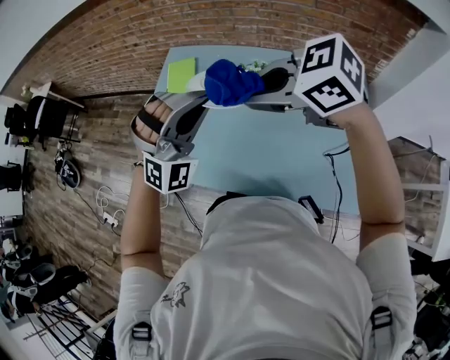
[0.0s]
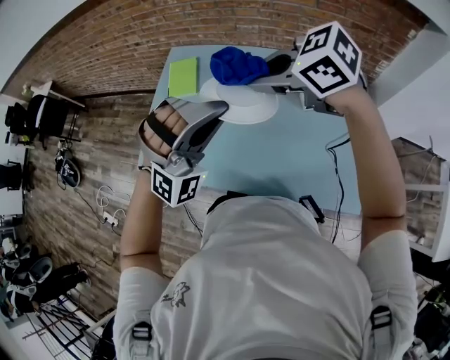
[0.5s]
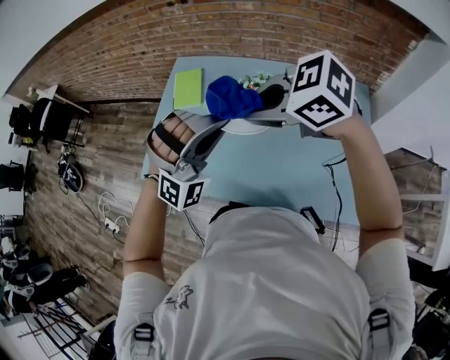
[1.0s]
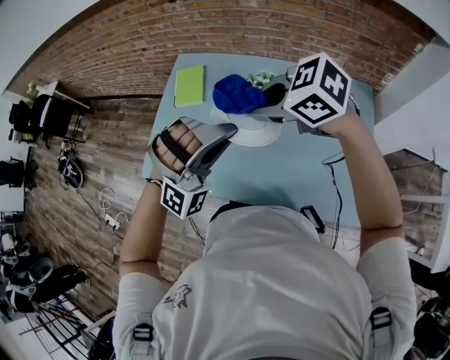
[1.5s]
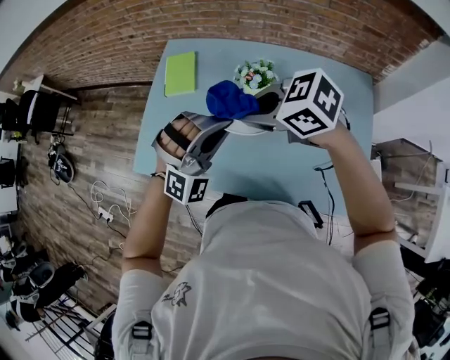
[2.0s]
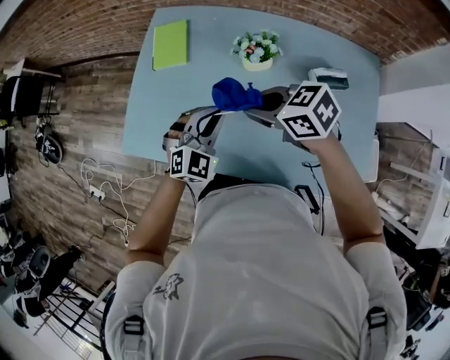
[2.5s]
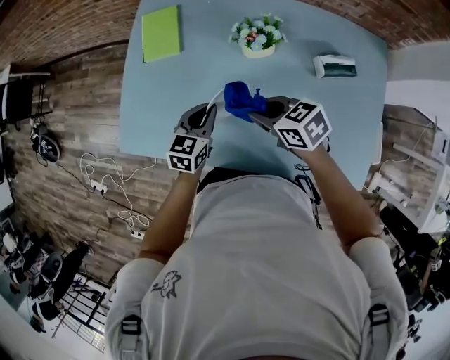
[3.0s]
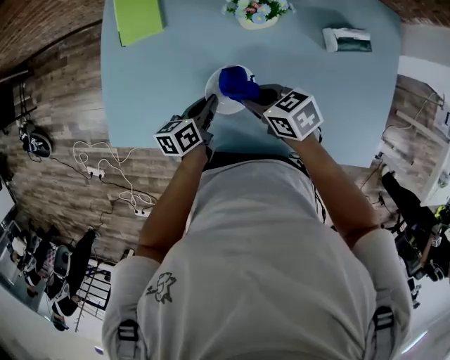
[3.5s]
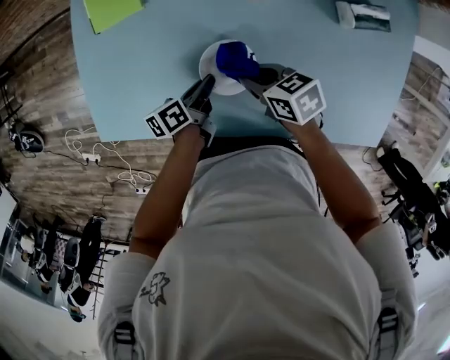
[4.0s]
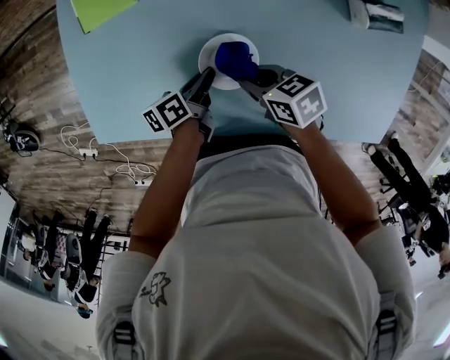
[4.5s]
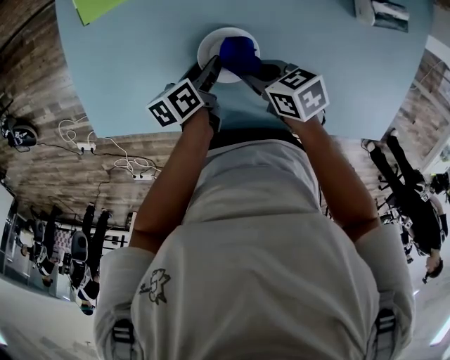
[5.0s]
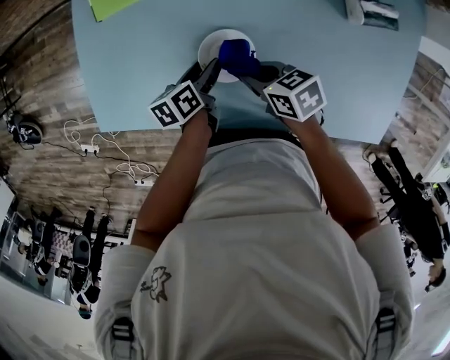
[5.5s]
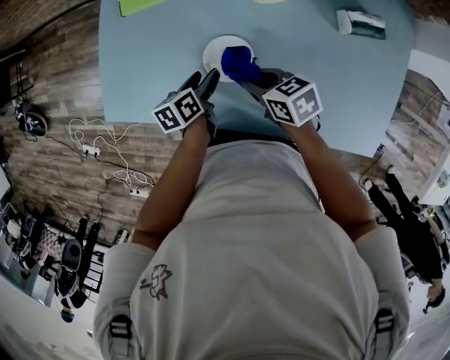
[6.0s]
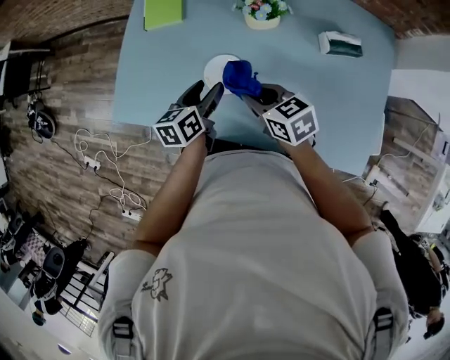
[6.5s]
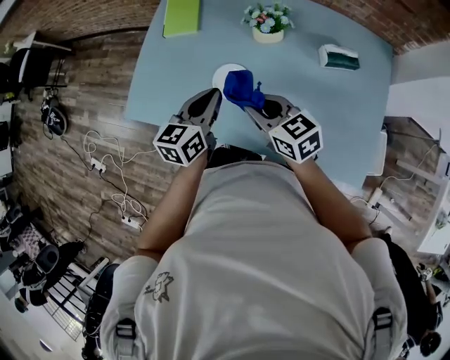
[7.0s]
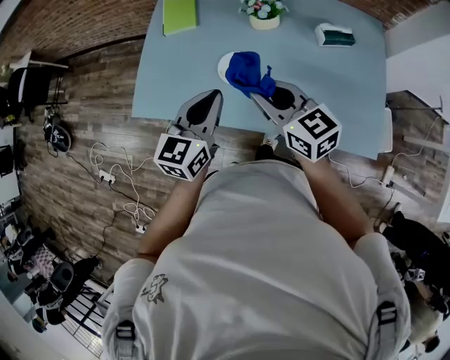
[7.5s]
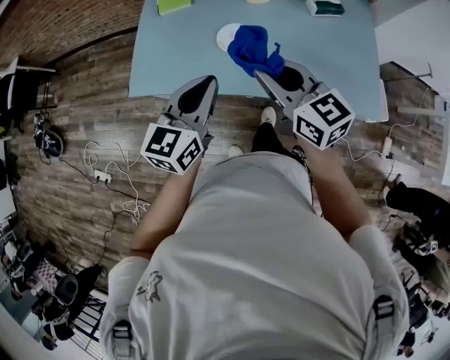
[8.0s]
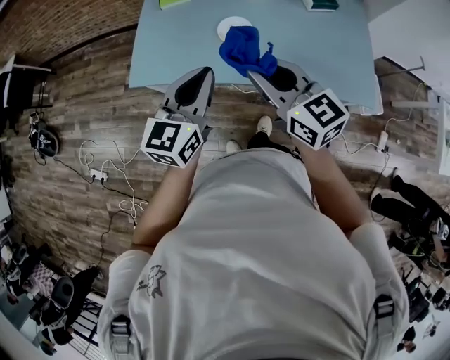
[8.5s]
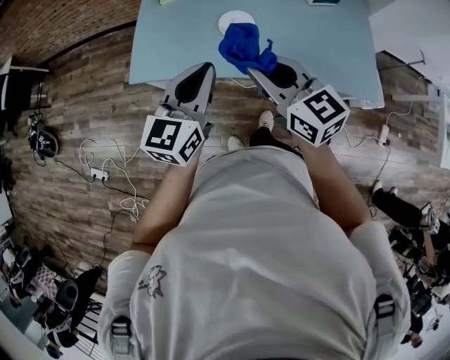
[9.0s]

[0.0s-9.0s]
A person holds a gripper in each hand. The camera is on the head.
0.0s to 2.0s: Both grippers move downward, about 10 cm.
2.0s to 4.5s: Both grippers travel together downward, roughly 40 cm. The left gripper rotates around the line of its fingers by approximately 150 degrees, counterclockwise from behind. The right gripper twists roughly 50 degrees clockwise, seen from behind.
4.5s to 7.0s: Both grippers move upward, approximately 25 cm. The left gripper rotates around the line of its fingers by roughly 50 degrees, clockwise from behind, and opens, then closes again; the right gripper turns by some 40 degrees.
7.0s to 9.0s: Both grippers travel together backward, to the left and upward, some 25 cm. The left gripper swivels some 20 degrees, while the right gripper swivels some 20 degrees.

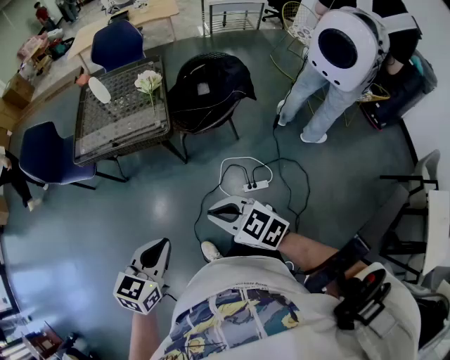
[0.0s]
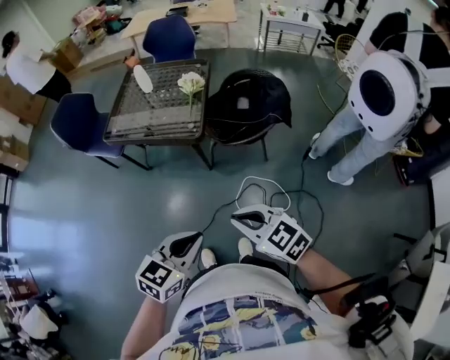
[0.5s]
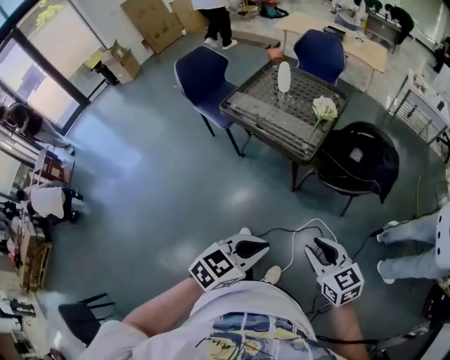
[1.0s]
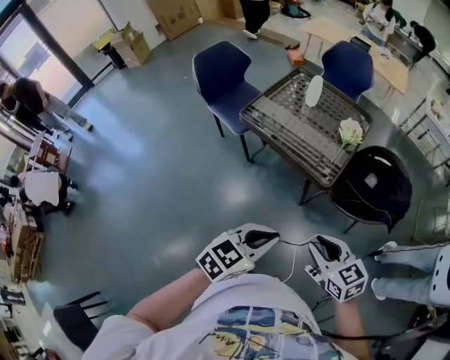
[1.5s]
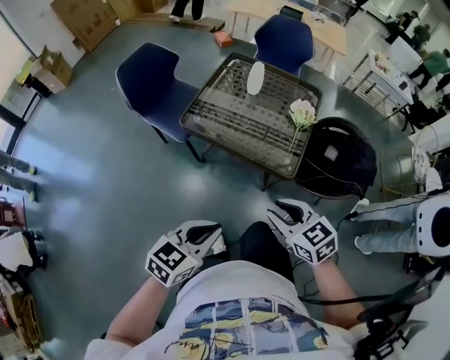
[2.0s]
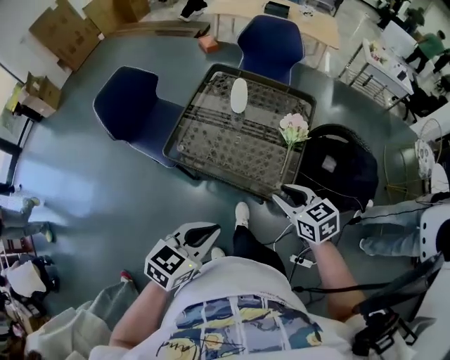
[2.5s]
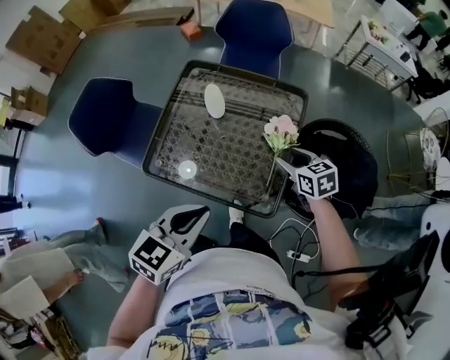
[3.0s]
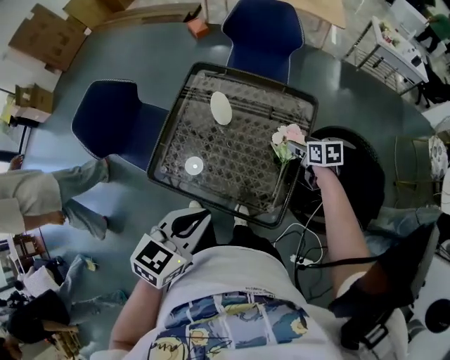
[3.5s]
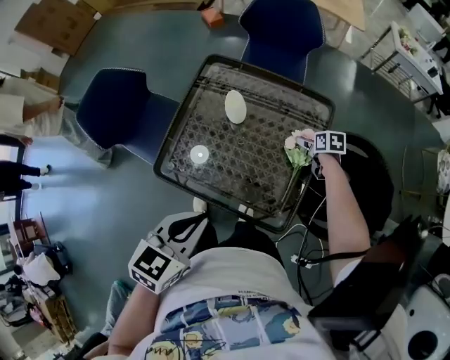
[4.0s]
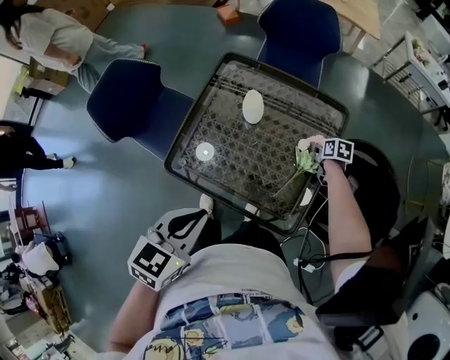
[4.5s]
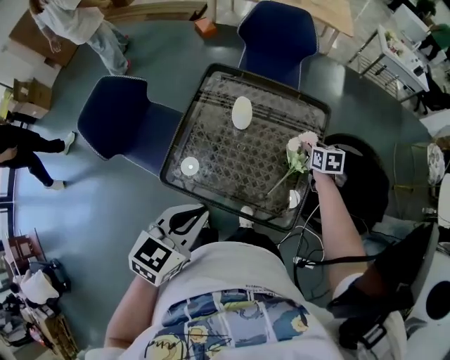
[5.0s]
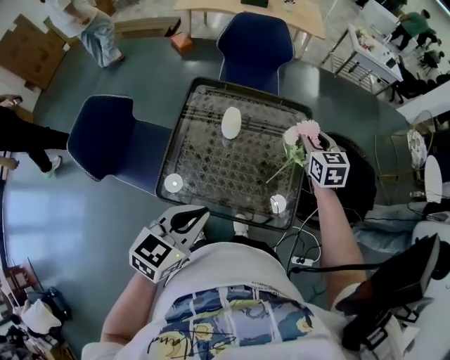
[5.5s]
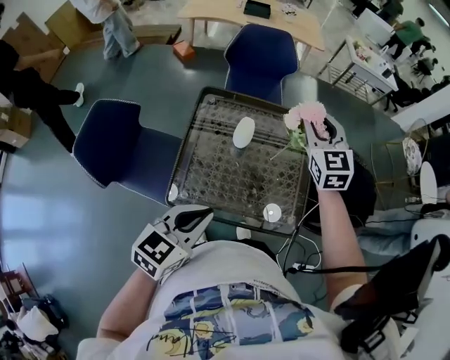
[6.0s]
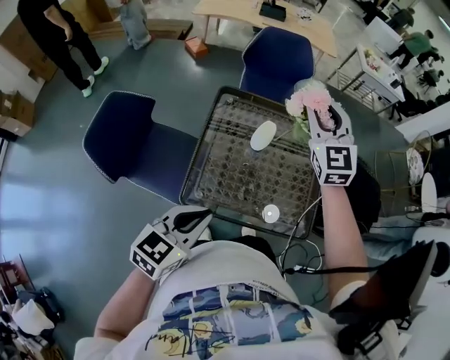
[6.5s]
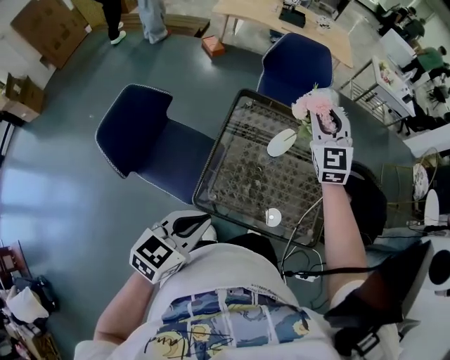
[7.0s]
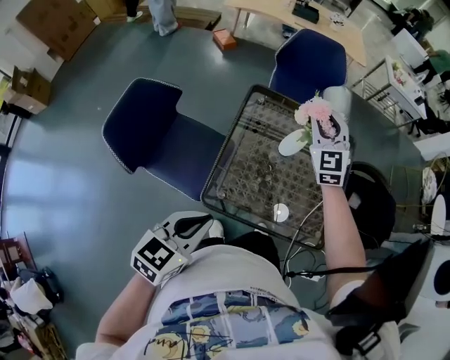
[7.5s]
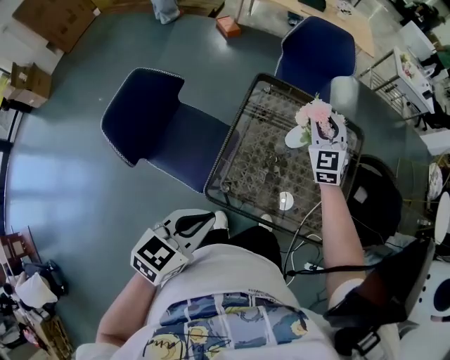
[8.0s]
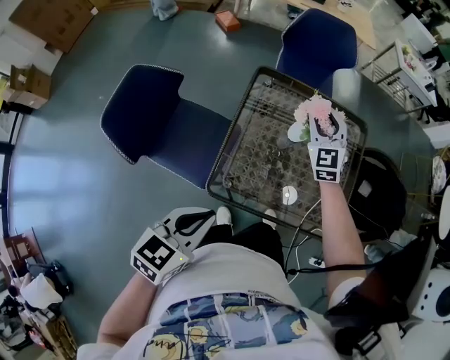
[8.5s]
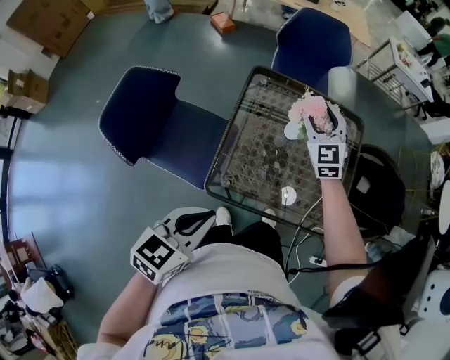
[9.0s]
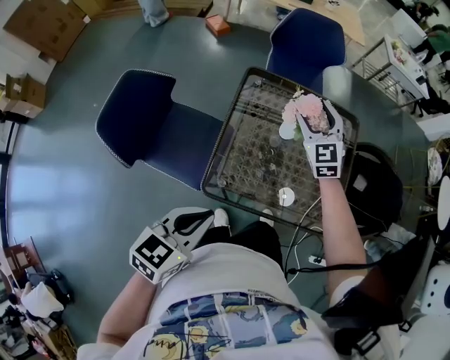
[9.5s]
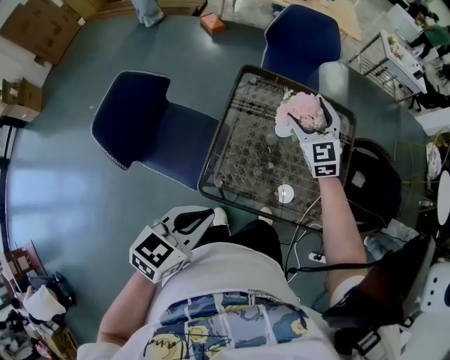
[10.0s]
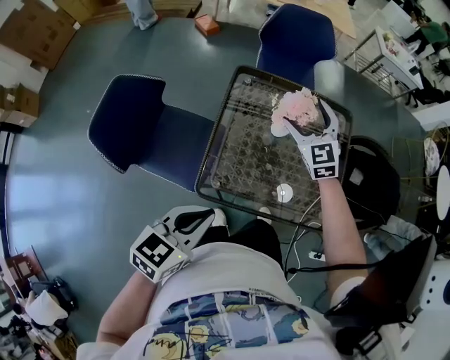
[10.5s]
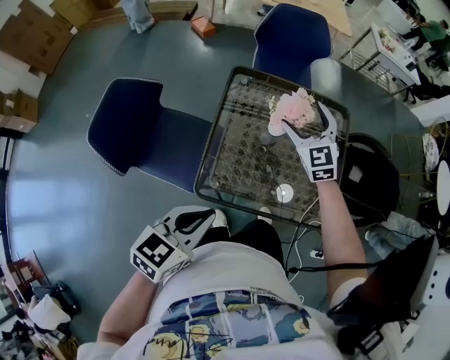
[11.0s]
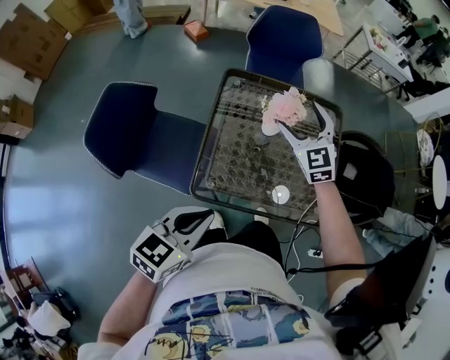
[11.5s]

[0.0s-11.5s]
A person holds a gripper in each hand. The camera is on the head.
0.0s to 2.0s: Both grippers travel together forward and to the left, some 30 cm.
2.0s to 4.0s: The right gripper heads forward and downward, covering some 60 cm, rotates around the line of its fingers by about 40 degrees, clockwise from behind, and opens its fingers; the left gripper travels forward by some 40 cm.
4.0s to 6.0s: The right gripper travels upward by about 40 cm, angles its fingers upward, by roughly 40 degrees, and closes, while the left gripper changes place by roughly 15 cm, and turns by approximately 20 degrees.
6.0s to 7.5s: Both grippers move to the left, about 15 cm.
7.5s to 9.5s: The right gripper is displaced downward by approximately 5 cm, and opens up.
9.5s to 11.5s: The right gripper opens up.

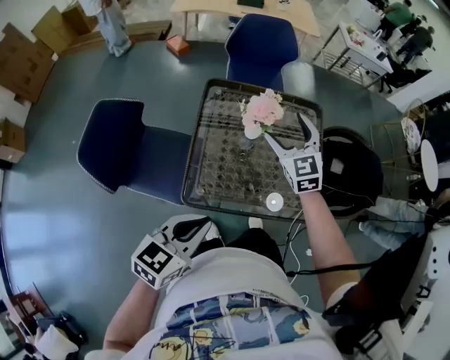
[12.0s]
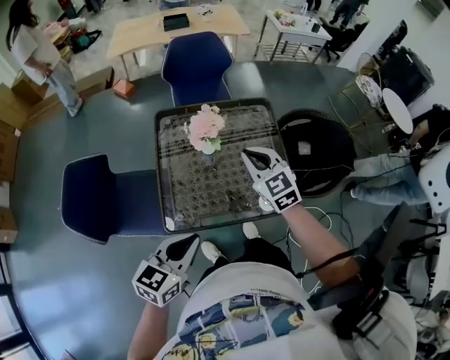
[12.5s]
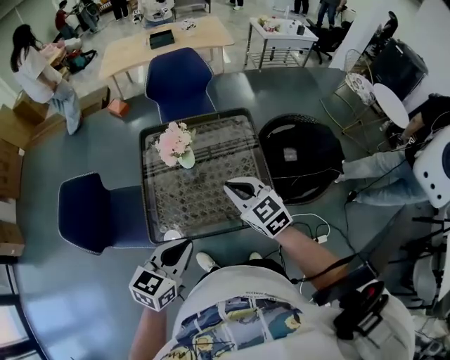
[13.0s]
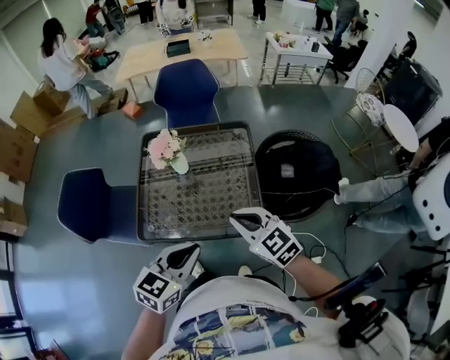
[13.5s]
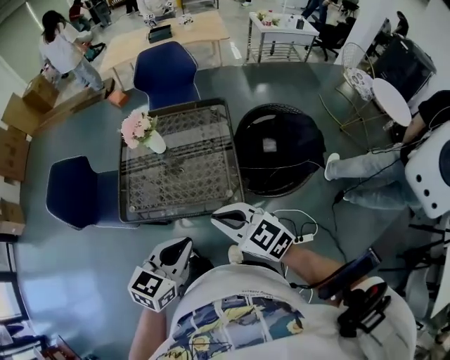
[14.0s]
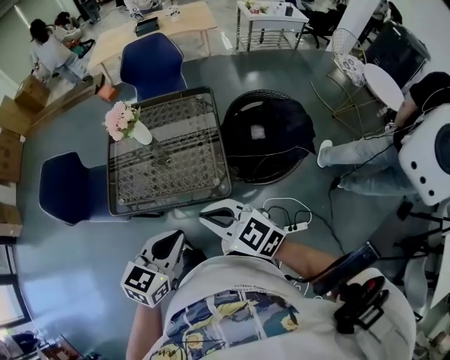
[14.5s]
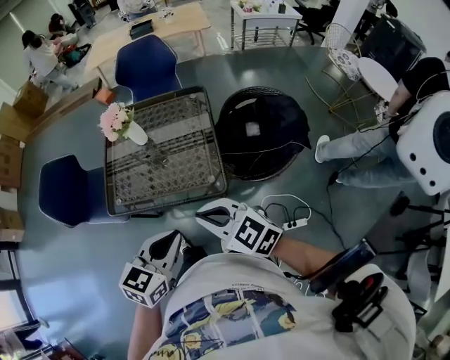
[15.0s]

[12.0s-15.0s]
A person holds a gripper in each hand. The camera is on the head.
12.0s to 13.5s: The right gripper heads to the right and backward, covering approximately 30 cm, swivels about 30 degrees, and closes its fingers. The left gripper travels to the right by some 25 cm.
13.5s to 15.0s: The left gripper heads backward and to the right, covering roughly 15 cm, while the right gripper is displaced backward by about 15 cm.

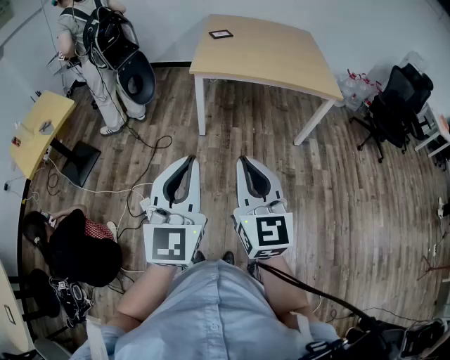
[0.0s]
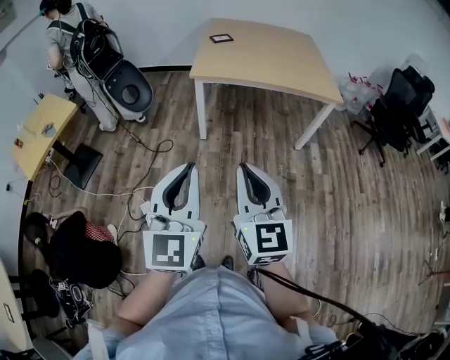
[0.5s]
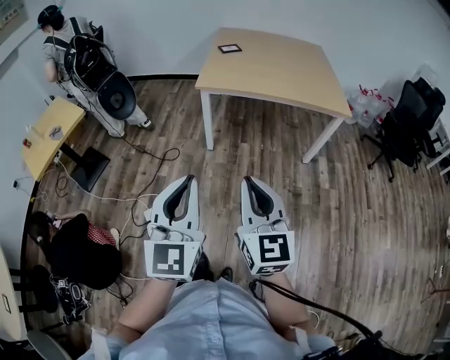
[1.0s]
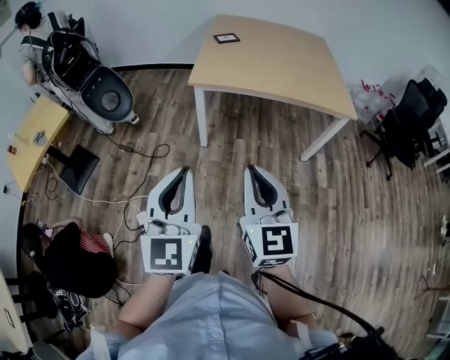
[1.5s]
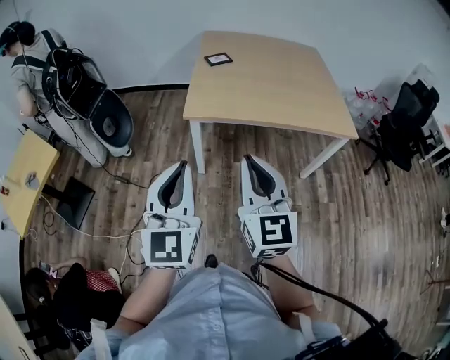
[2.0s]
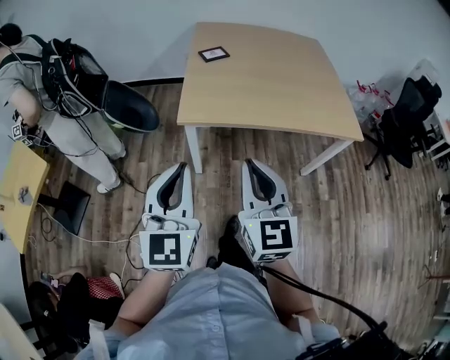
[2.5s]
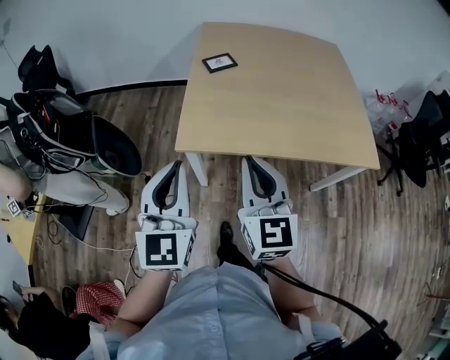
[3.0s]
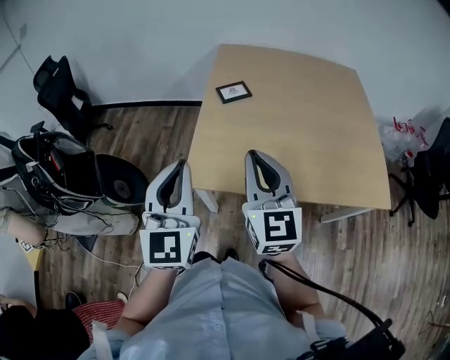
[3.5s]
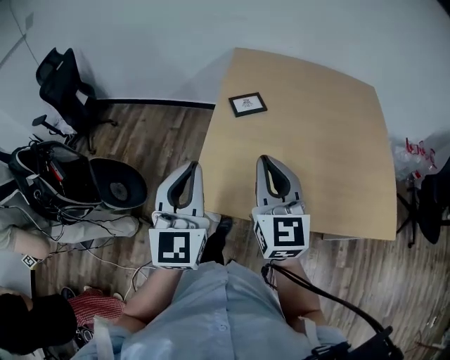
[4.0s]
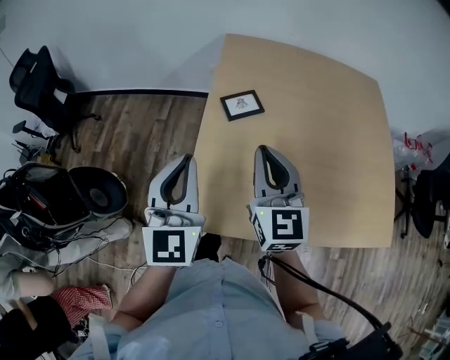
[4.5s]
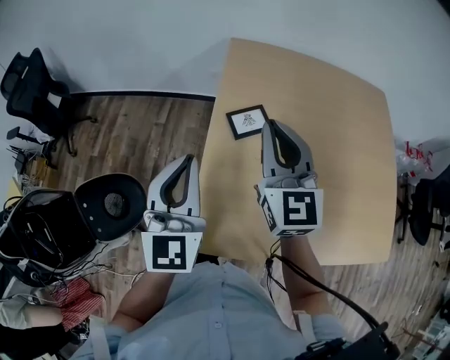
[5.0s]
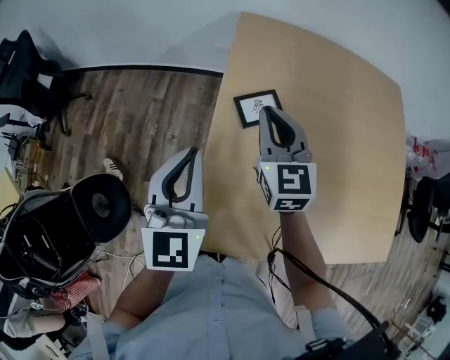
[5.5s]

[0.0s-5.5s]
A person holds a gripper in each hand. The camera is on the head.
0.0s to 2.0s: Both grippers move forward, about 25 cm.
2.0s to 3.5s: Both grippers move forward, roughly 30 cm.
3.5s to 5.5s: The two grippers go some 30 cm forward.
